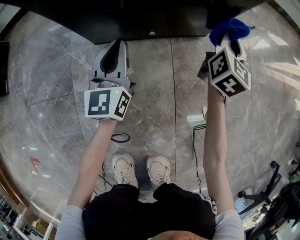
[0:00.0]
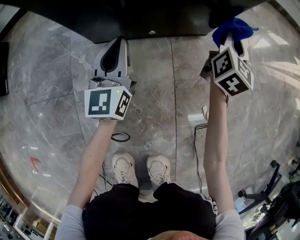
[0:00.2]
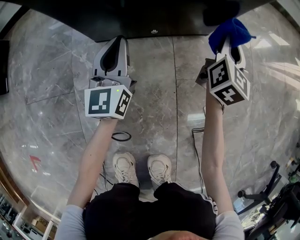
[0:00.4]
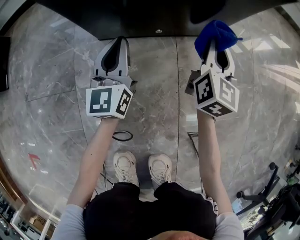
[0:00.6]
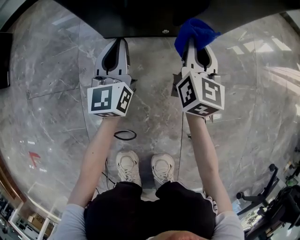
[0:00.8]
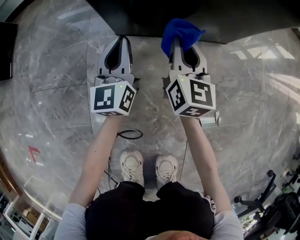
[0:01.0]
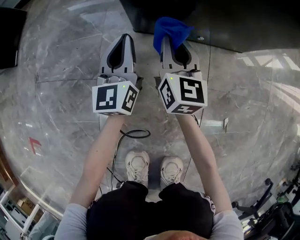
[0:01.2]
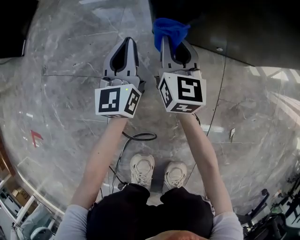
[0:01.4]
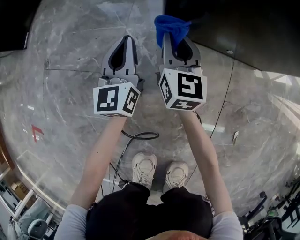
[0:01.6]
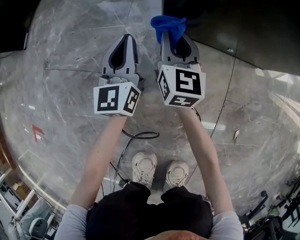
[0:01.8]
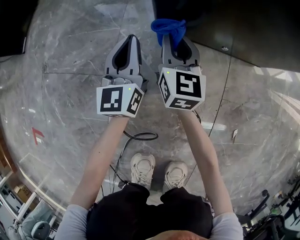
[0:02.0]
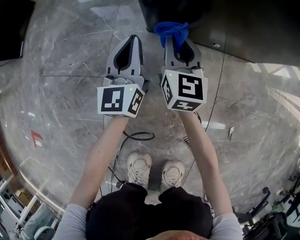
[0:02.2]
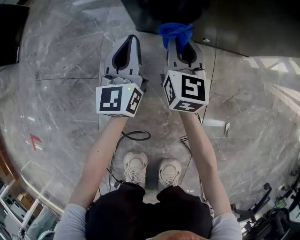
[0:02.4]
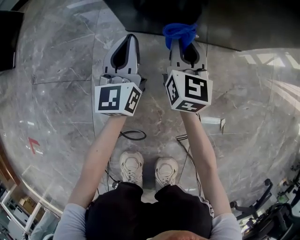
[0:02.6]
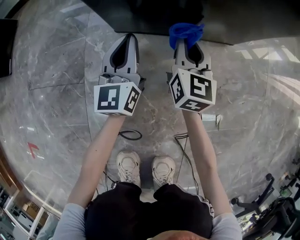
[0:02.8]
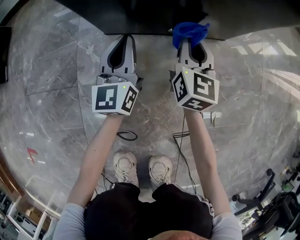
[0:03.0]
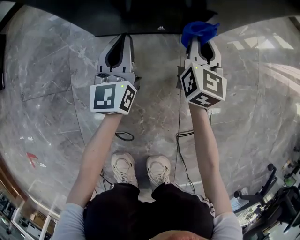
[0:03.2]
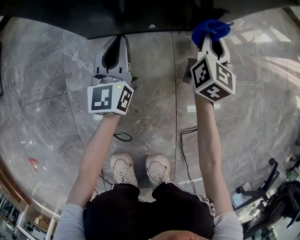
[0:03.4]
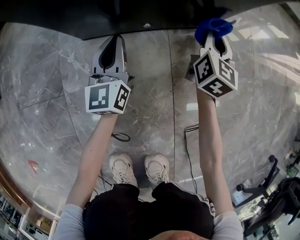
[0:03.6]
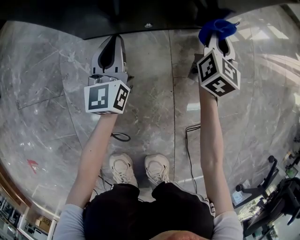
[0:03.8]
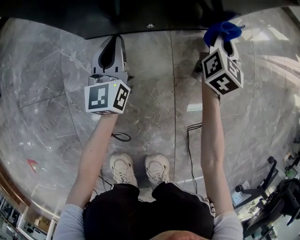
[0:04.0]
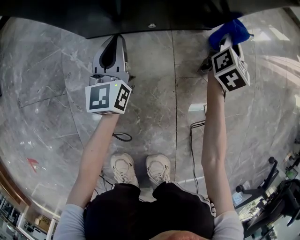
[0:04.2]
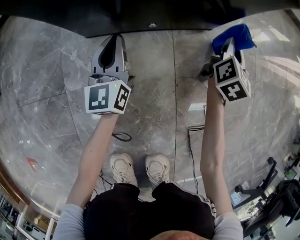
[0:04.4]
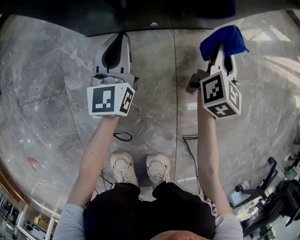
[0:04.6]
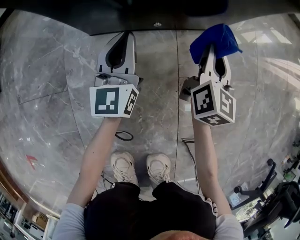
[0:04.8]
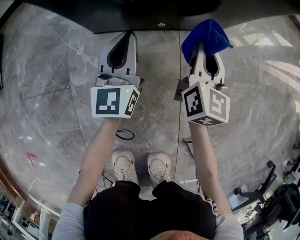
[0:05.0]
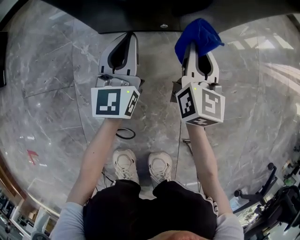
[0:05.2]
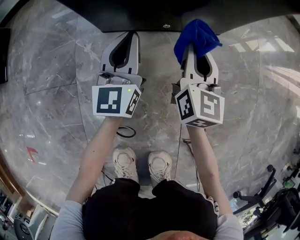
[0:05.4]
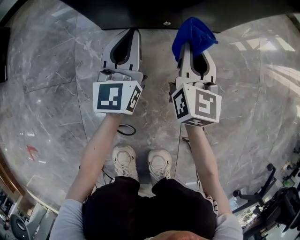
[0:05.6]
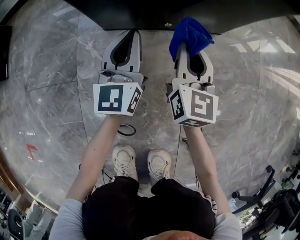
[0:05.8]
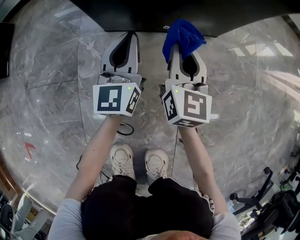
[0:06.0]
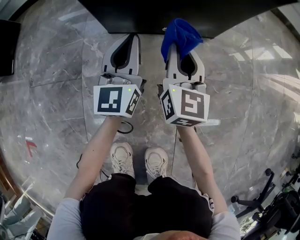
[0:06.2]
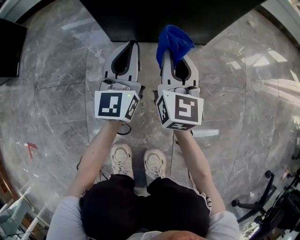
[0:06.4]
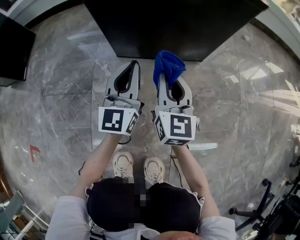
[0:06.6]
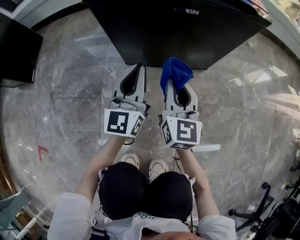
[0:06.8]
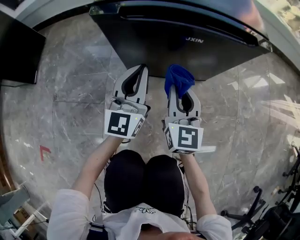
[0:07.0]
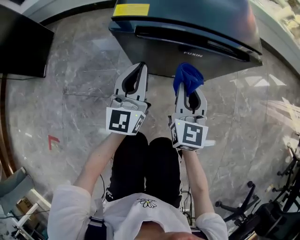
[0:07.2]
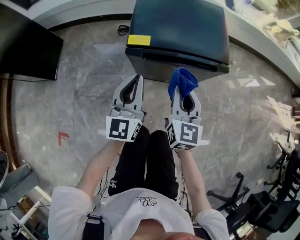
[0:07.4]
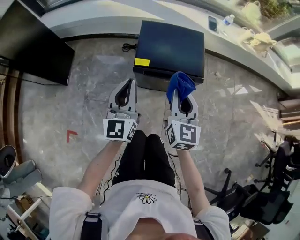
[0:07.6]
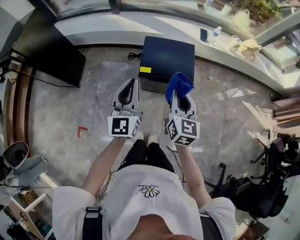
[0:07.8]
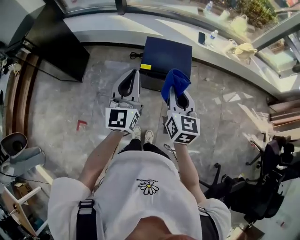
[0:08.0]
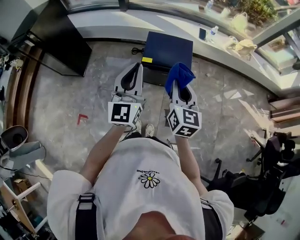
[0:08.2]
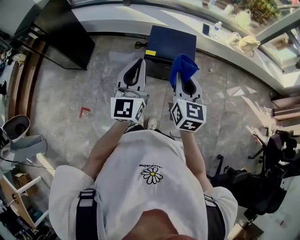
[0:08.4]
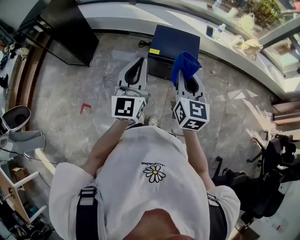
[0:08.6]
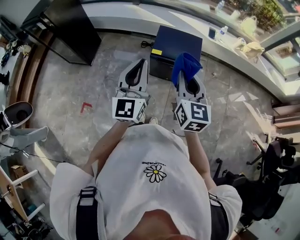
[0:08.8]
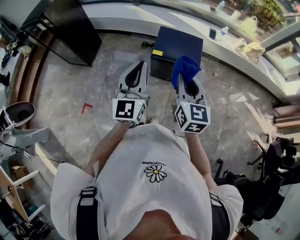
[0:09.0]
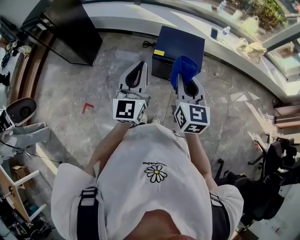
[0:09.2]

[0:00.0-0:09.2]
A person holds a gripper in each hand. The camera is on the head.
0:00.0 to 0:01.6: The right gripper ends up some 40 cm from where it was, and changes its angle by approximately 40 degrees; the left gripper shifts by about 20 cm.
0:01.6 to 0:03.0: The grippers both shift to the right by roughly 20 cm.
0:03.0 to 0:04.6: The right gripper shifts some 15 cm to the right, and changes its angle by approximately 20 degrees.
0:04.6 to 0:06.2: The left gripper travels upward by some 10 cm. Meanwhile the right gripper moves to the left, upward and backward, approximately 20 cm, and swivels approximately 30 degrees.
0:06.2 to 0:07.6: Both grippers travel together upward, roughly 60 cm.
0:07.6 to 0:09.2: Both grippers move upward and backward, about 35 cm.

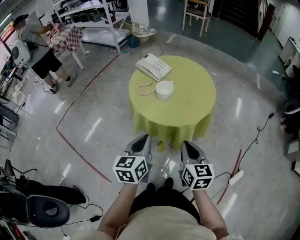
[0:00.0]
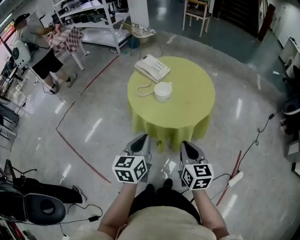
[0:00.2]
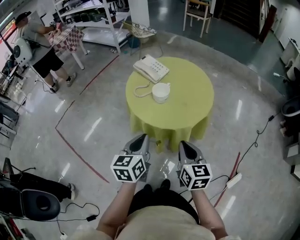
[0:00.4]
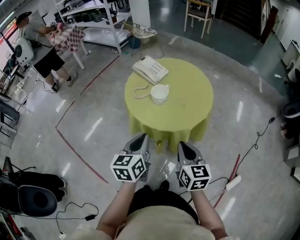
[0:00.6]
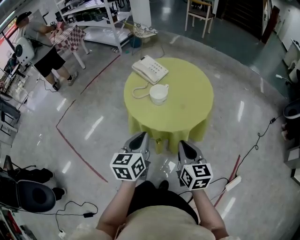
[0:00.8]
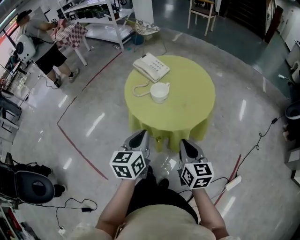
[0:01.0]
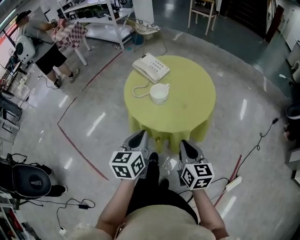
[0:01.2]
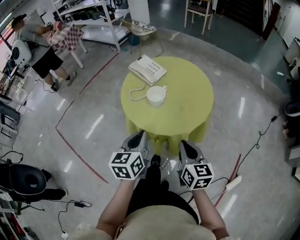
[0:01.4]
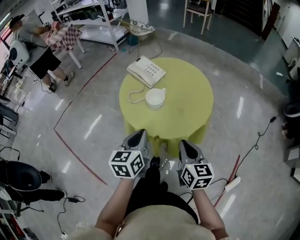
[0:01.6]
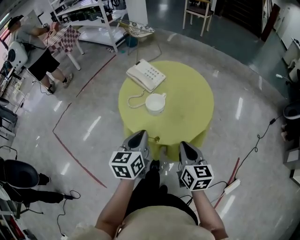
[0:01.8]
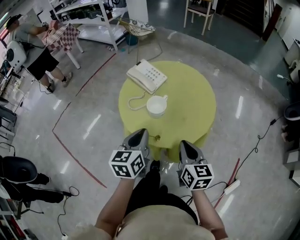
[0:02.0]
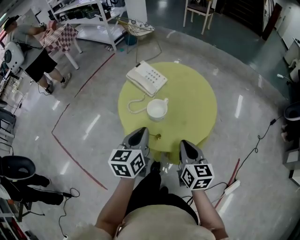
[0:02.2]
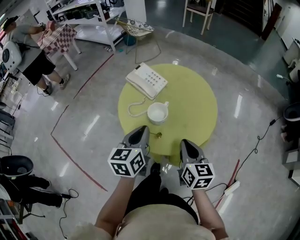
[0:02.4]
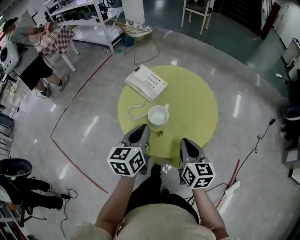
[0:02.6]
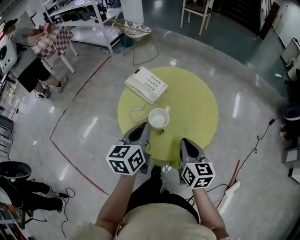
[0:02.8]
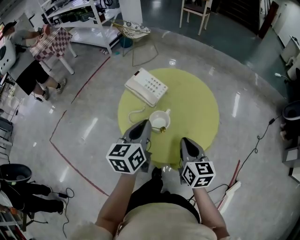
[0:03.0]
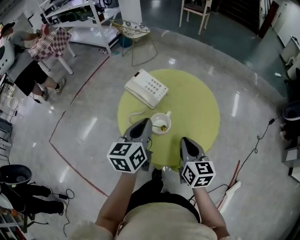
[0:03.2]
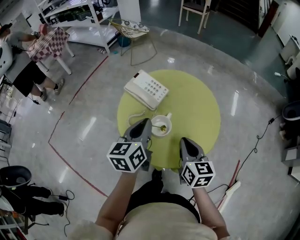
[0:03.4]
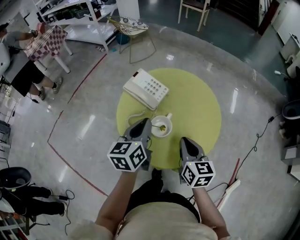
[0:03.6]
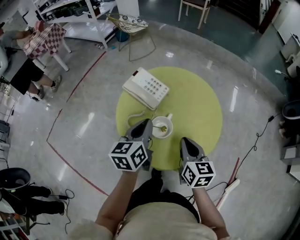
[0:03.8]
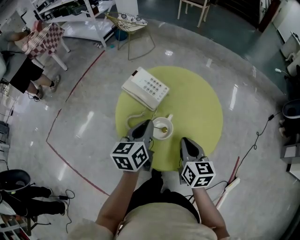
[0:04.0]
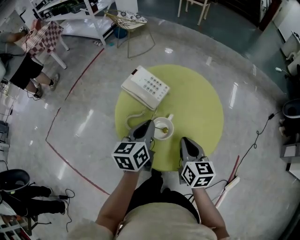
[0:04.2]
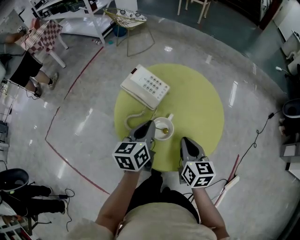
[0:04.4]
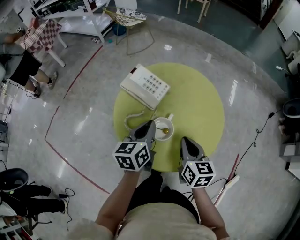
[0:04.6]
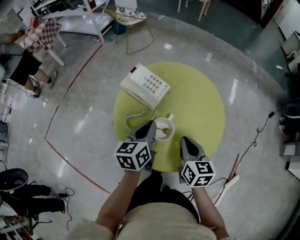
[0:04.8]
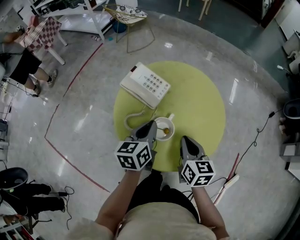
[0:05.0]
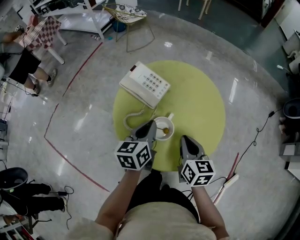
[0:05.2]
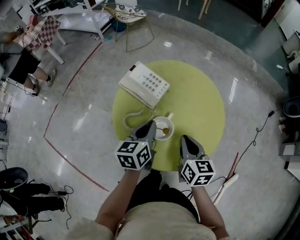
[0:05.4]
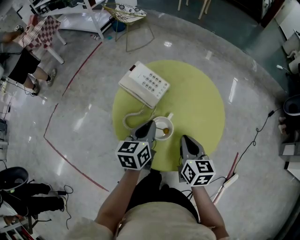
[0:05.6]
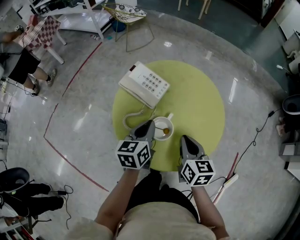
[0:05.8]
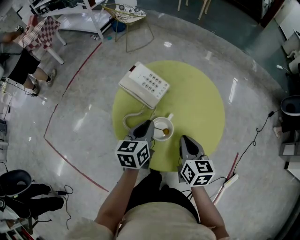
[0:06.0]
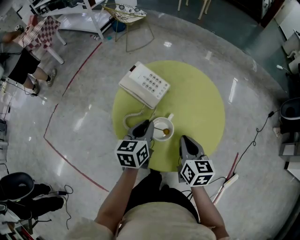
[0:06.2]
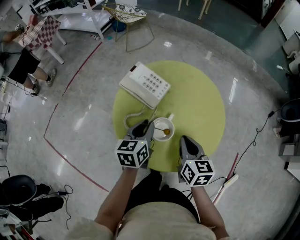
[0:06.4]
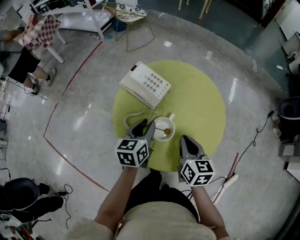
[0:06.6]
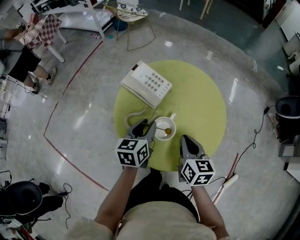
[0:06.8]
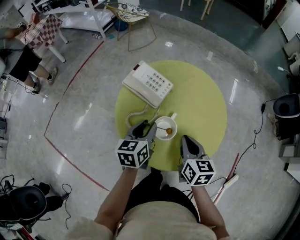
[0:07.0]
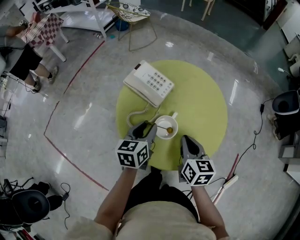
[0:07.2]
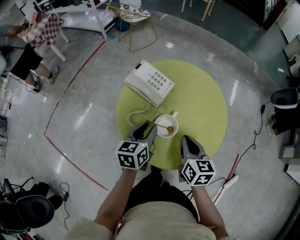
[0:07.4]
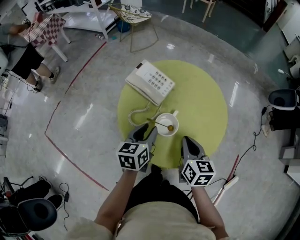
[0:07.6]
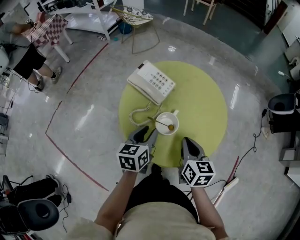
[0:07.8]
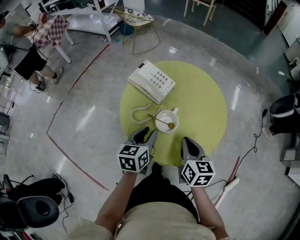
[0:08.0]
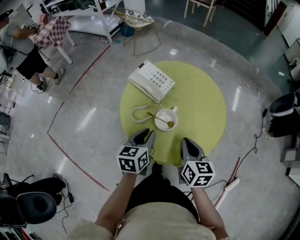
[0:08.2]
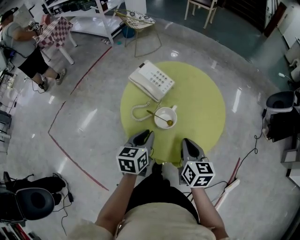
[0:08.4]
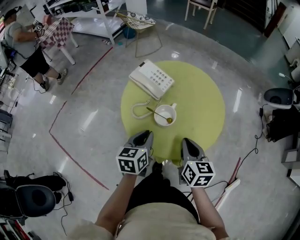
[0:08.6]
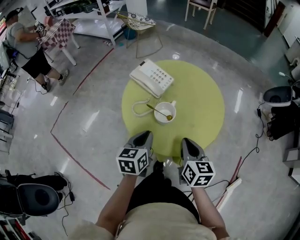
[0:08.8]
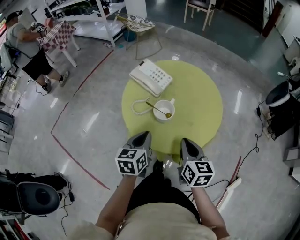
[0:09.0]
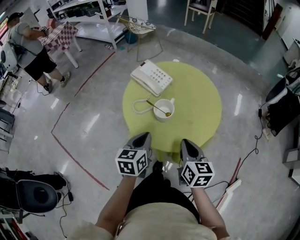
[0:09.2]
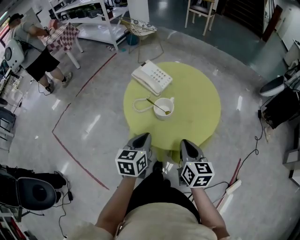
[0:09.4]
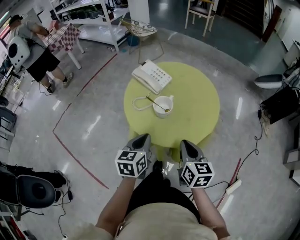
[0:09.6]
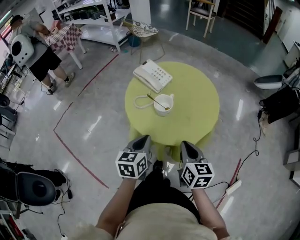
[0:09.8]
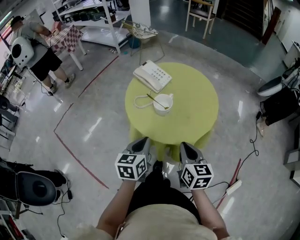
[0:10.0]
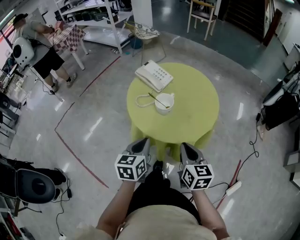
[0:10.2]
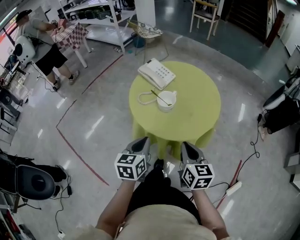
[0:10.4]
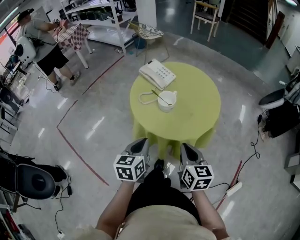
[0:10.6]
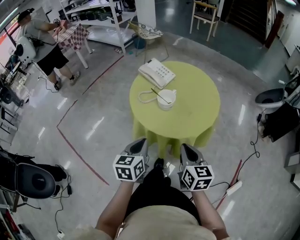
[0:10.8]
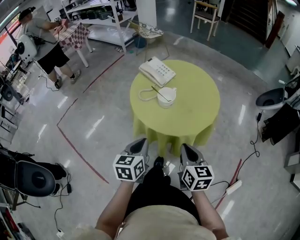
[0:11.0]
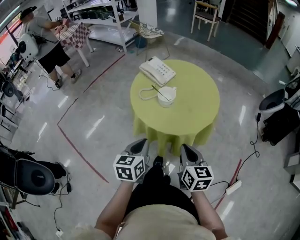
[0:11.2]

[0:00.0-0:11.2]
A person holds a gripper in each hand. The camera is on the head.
0:00.0 to 0:01.6: Both grippers move forward, about 10 cm.
0:01.6 to 0:03.2: The two grippers go about 15 cm forward.
0:03.2 to 0:04.8: The right gripper changes place by some 5 cm, while the left gripper moves downward and forward, approximately 10 cm.
0:04.8 to 0:06.4: There are only small adjustments of the grippers.
0:06.4 to 0:08.0: The left gripper moves backward, some 5 cm.
0:08.0 to 0:09.6: The grippers both shift backward by approximately 10 cm. The left gripper closes up.
0:09.6 to 0:11.2: The two grippers go roughly 10 cm backward.

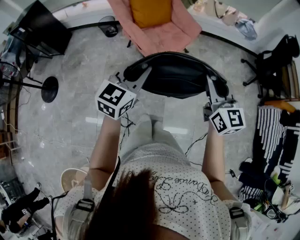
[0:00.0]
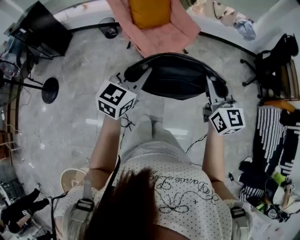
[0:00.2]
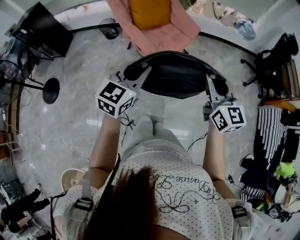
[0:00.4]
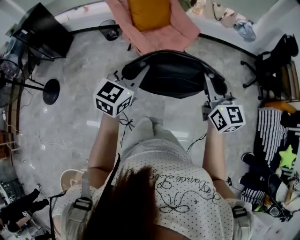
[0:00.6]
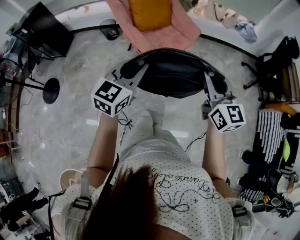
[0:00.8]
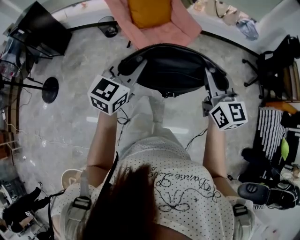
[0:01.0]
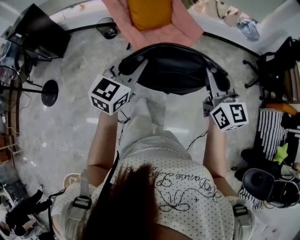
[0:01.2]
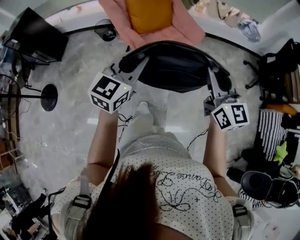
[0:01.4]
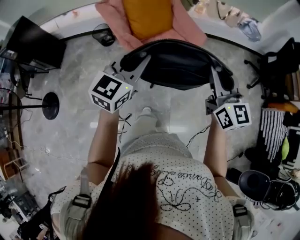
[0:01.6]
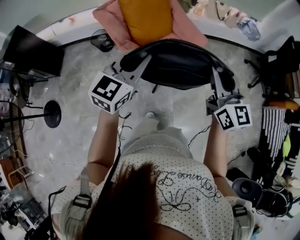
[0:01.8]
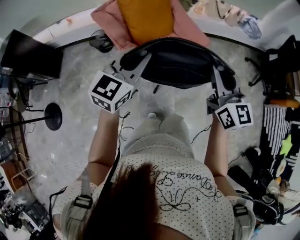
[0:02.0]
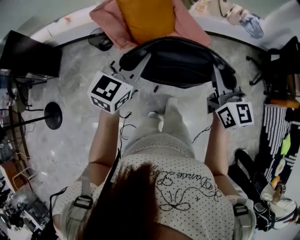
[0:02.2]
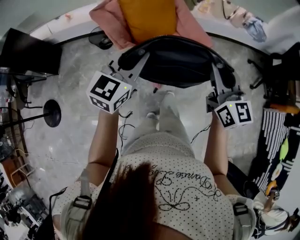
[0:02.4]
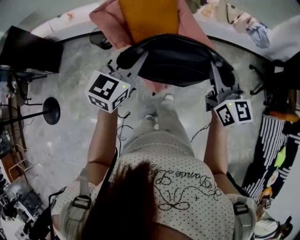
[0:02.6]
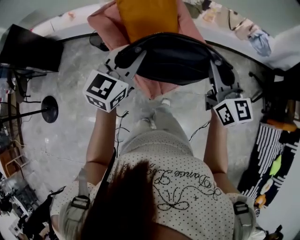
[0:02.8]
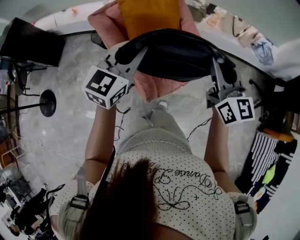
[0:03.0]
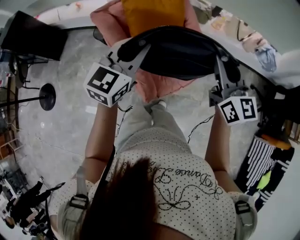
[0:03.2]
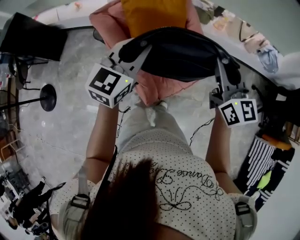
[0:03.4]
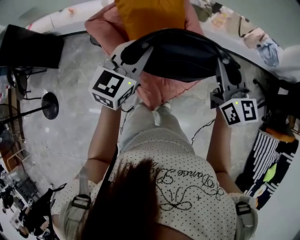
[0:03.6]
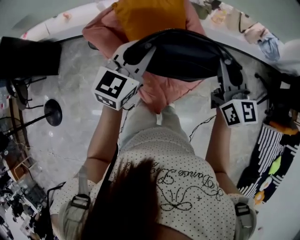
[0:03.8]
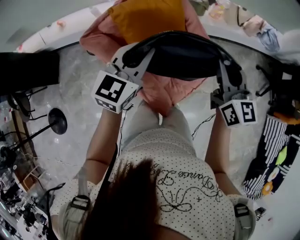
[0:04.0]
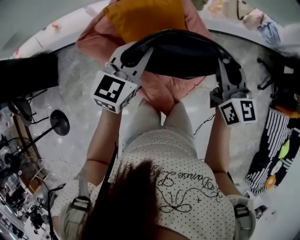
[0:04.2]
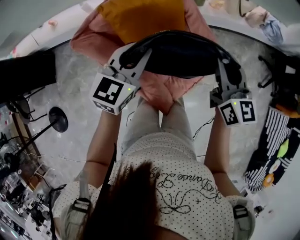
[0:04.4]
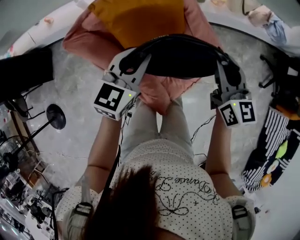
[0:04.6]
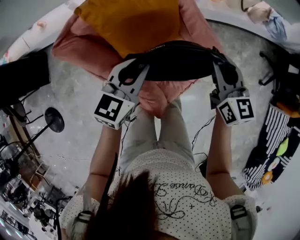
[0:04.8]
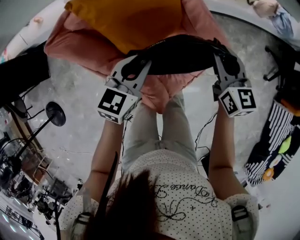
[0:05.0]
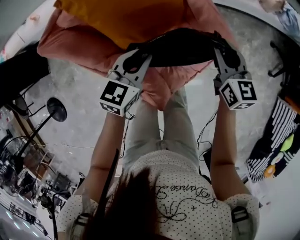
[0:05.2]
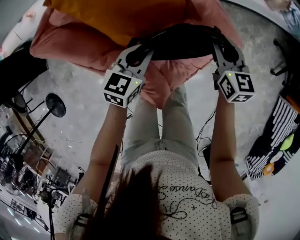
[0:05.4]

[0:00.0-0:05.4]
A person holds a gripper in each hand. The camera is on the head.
0:00.0 to 0:01.4: Both grippers move forward, about 15 cm.
0:01.4 to 0:02.8: Both grippers move forward, about 30 cm.
0:02.8 to 0:04.0: The grippers both shift forward by about 15 cm.
0:04.0 to 0:05.4: The two grippers go roughly 30 cm downward. The right gripper rotates roughly 20 degrees, while the left gripper changes its angle by about 20 degrees.
